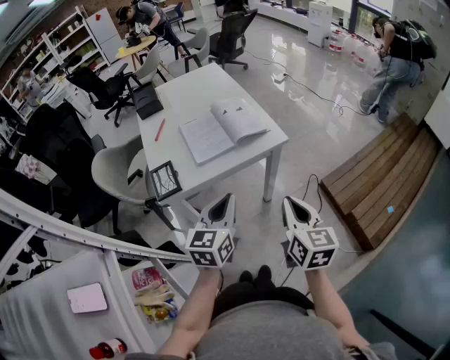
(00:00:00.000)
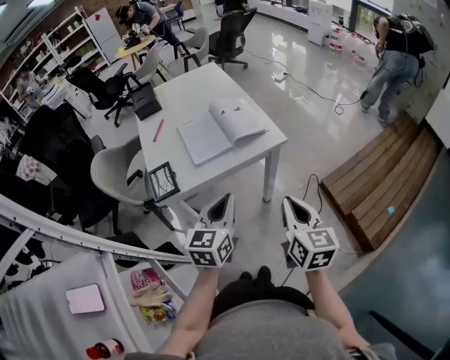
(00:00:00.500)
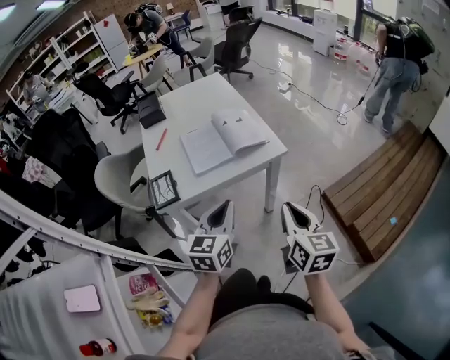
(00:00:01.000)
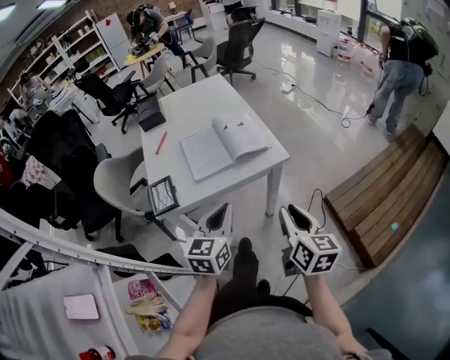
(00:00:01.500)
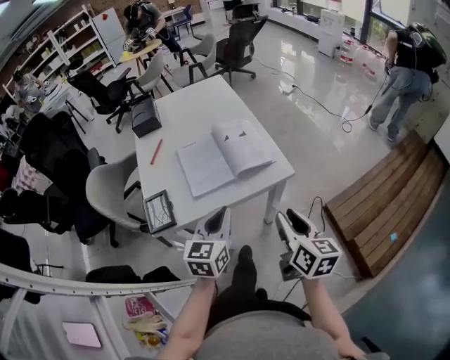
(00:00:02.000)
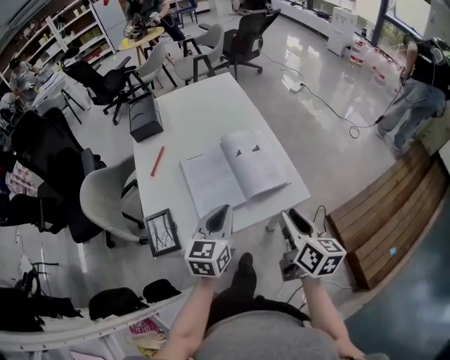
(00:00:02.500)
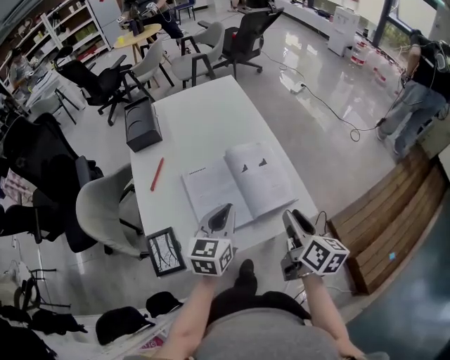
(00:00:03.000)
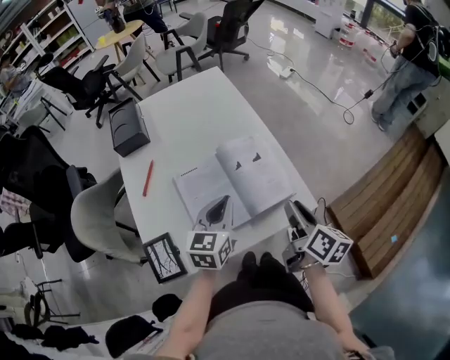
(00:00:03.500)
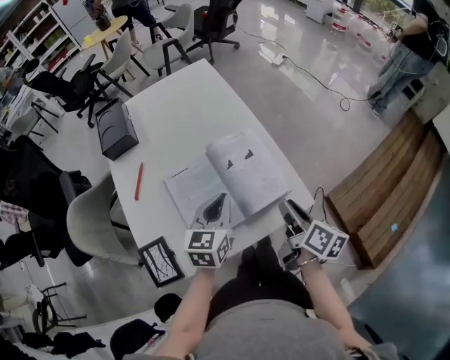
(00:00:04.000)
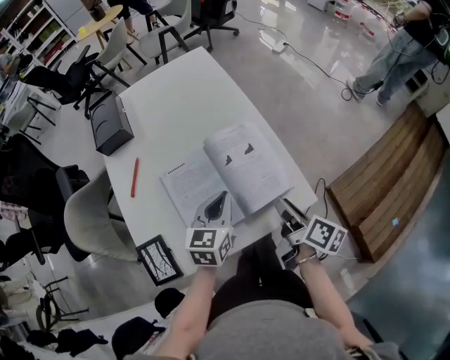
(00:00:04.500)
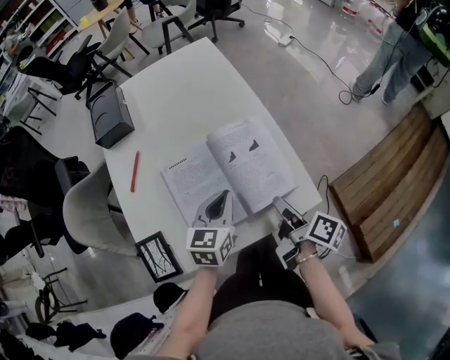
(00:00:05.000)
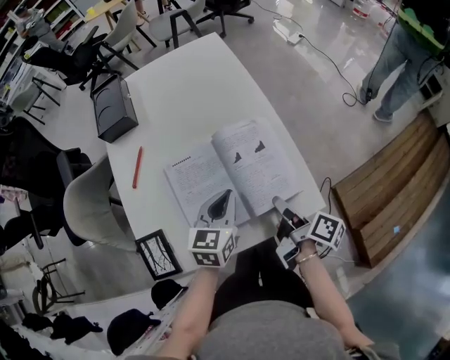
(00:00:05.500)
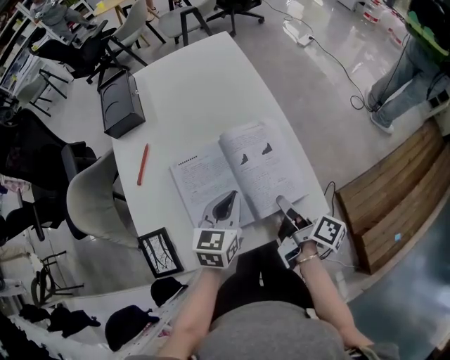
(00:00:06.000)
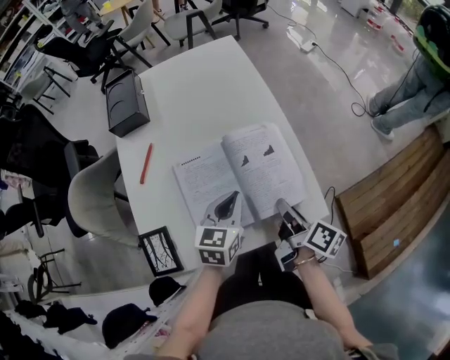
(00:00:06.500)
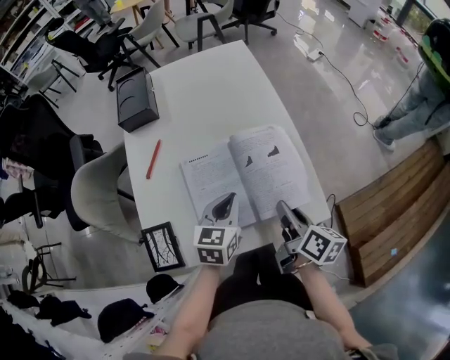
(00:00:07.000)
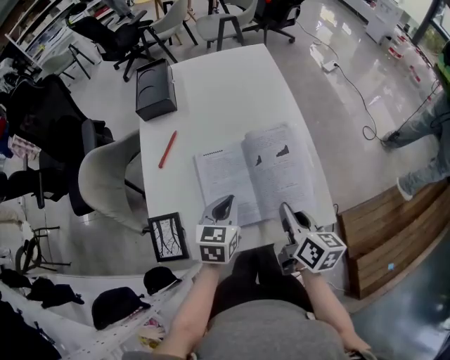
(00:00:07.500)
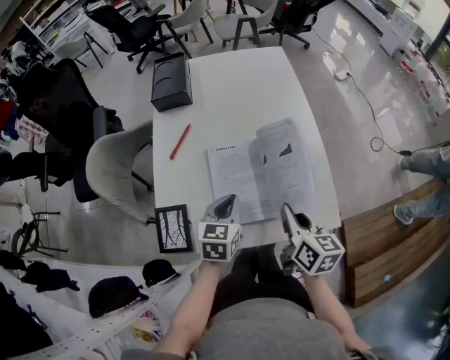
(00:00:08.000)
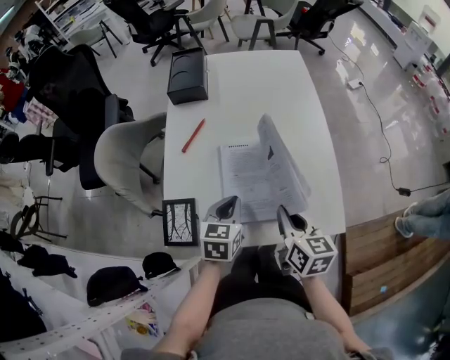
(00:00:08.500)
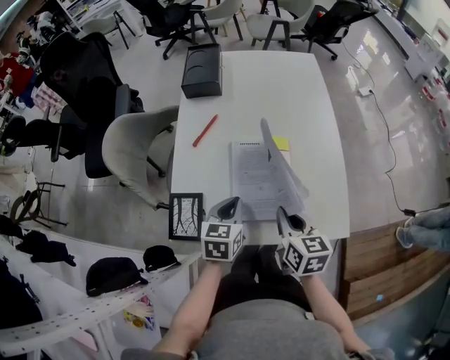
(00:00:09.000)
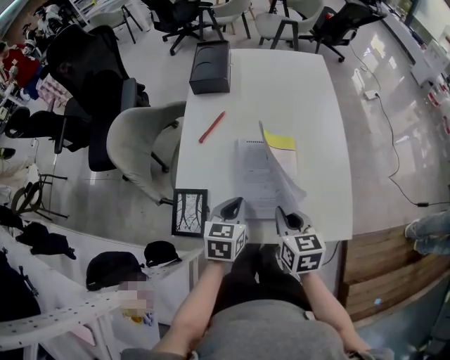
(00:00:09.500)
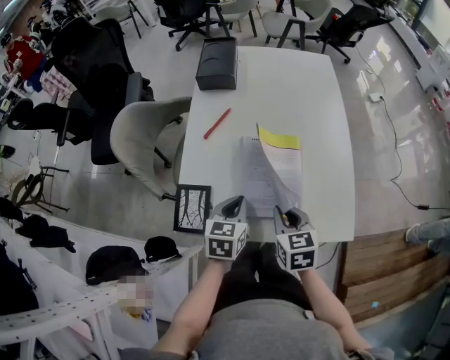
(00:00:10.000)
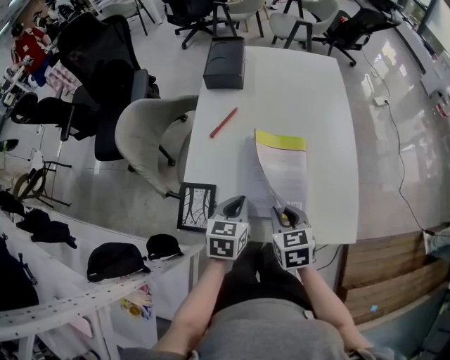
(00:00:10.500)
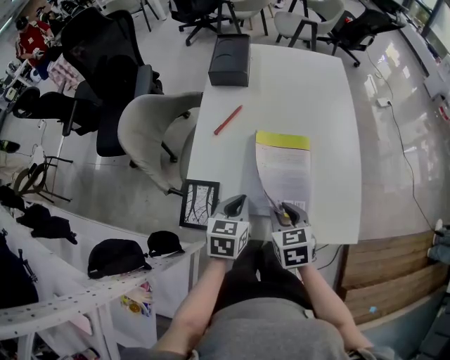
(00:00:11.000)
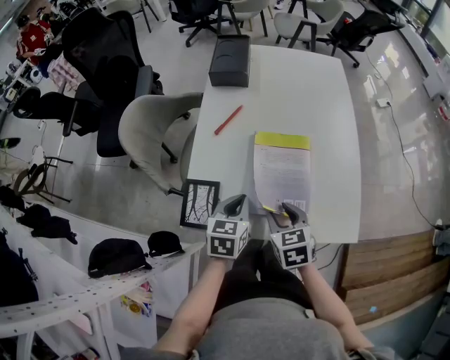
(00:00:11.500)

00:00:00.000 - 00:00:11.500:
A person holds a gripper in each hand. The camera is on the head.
00:00:00.000 - 00:00:02.000: Both grippers travel together forward, about 10 cm. The right gripper opens.
00:00:02.000 - 00:00:04.000: Both grippers move forward, some 20 cm. The right gripper turns by approximately 30 degrees.
00:00:04.000 - 00:00:06.000: The right gripper goes about 5 cm downward, and swivels some 20 degrees.
00:00:06.000 - 00:00:07.500: The left gripper moves to the left, some 5 cm; the right gripper heads upward, covering roughly 5 cm, twists about 40 degrees counterclockwise, seen from behind, and closes its fingers.
00:00:07.500 - 00:00:09.500: Both grippers move to the left, some 10 cm. The right gripper turns by approximately 30 degrees.
00:00:09.500 - 00:00:11.500: The right gripper ends up roughly 5 cm from where it was, and opens.

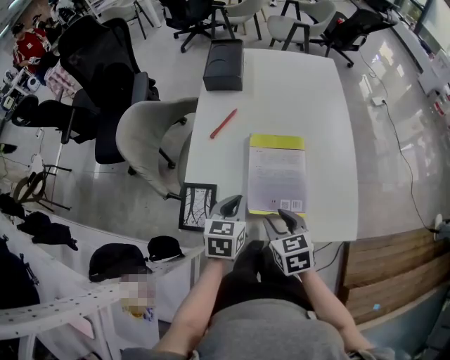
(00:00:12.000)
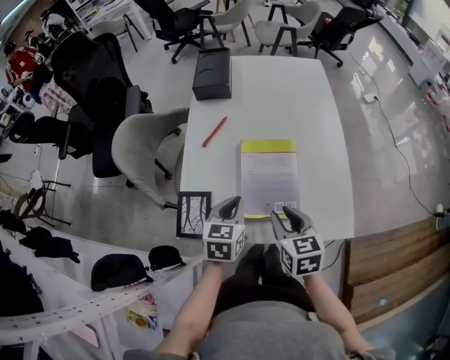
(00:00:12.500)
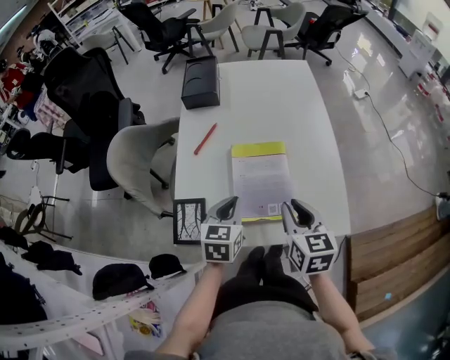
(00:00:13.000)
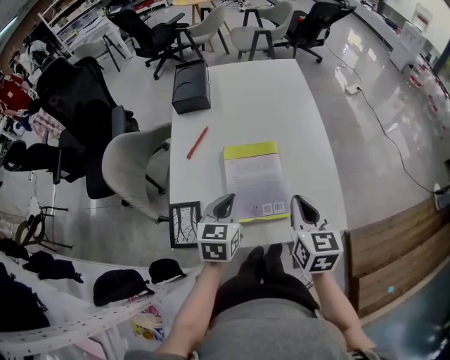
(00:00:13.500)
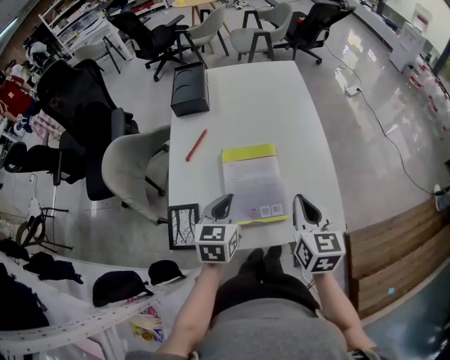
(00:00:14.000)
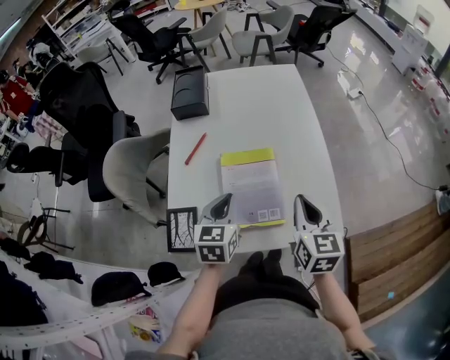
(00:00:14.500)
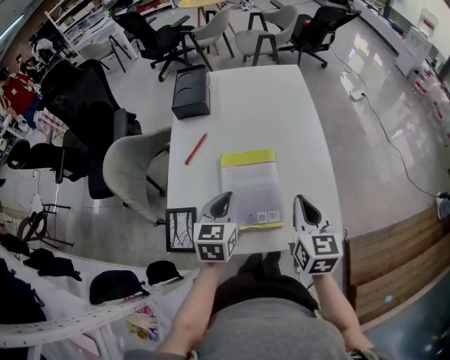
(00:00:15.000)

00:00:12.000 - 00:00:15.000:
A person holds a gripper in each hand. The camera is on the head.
00:00:12.000 - 00:00:13.500: The left gripper changes place by approximately 5 cm. Meanwhile the right gripper moves to the right and upward, roughly 15 cm, changes its angle by some 30 degrees, and closes up.
00:00:13.500 - 00:00:15.000: The grippers move only a little.

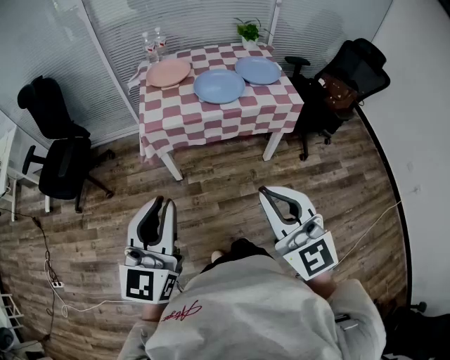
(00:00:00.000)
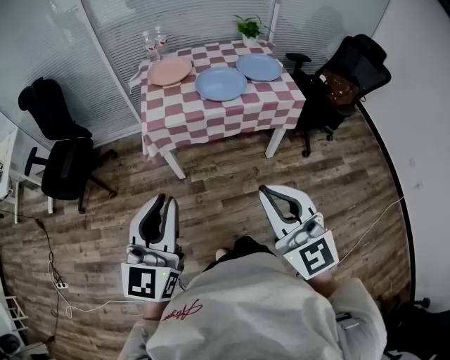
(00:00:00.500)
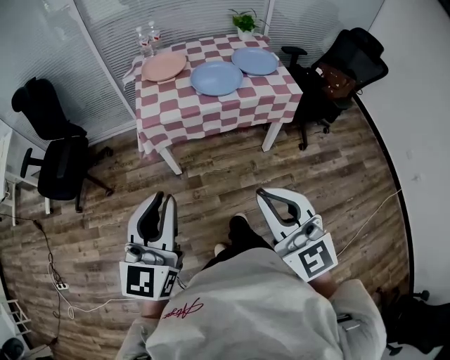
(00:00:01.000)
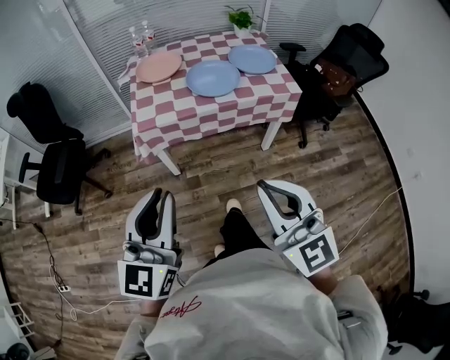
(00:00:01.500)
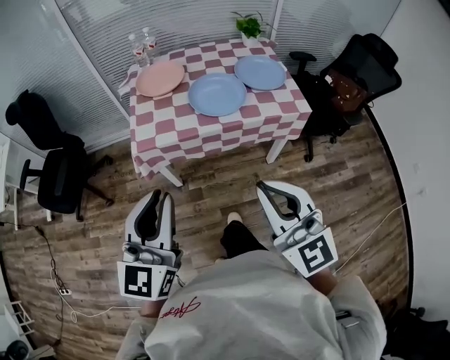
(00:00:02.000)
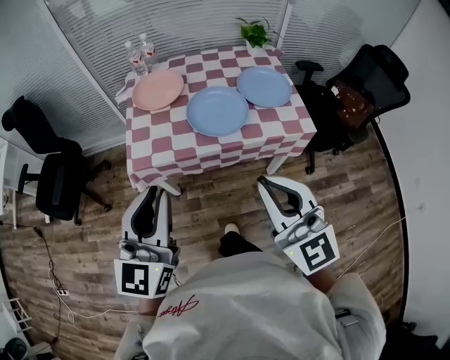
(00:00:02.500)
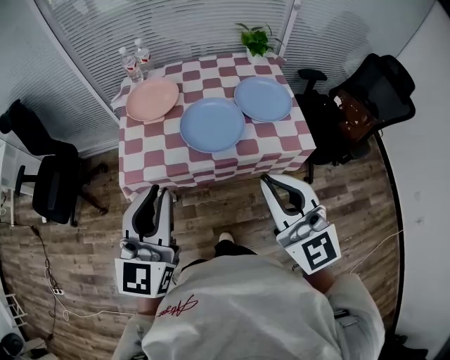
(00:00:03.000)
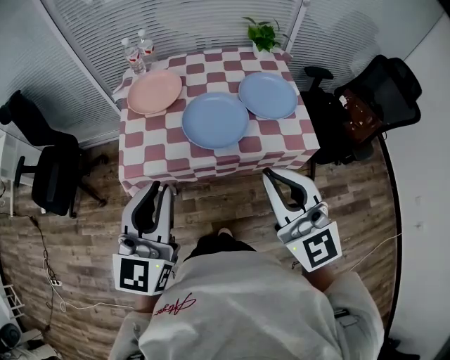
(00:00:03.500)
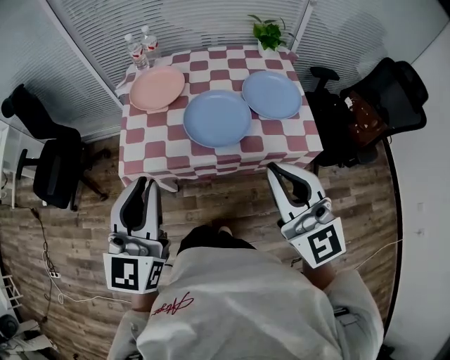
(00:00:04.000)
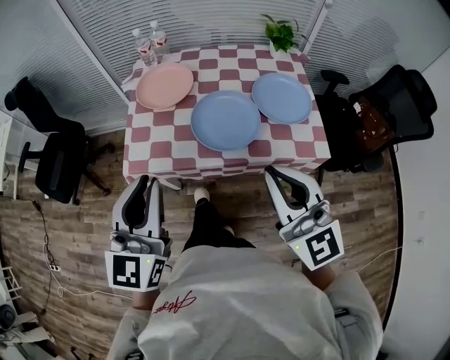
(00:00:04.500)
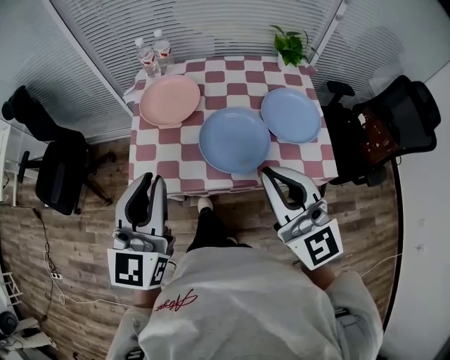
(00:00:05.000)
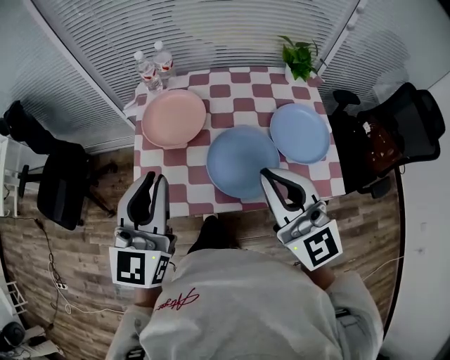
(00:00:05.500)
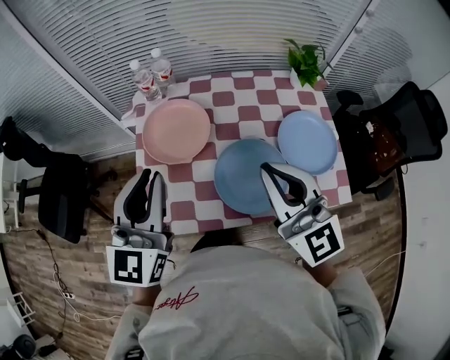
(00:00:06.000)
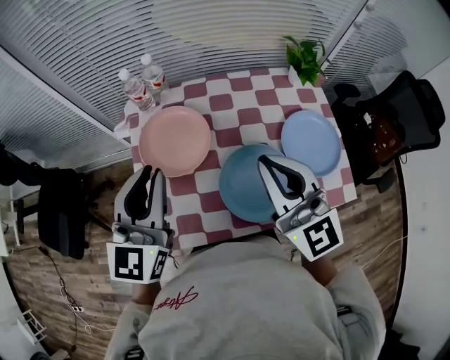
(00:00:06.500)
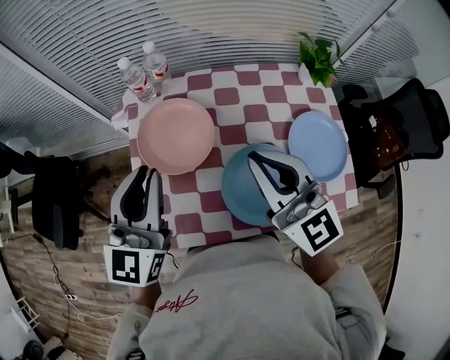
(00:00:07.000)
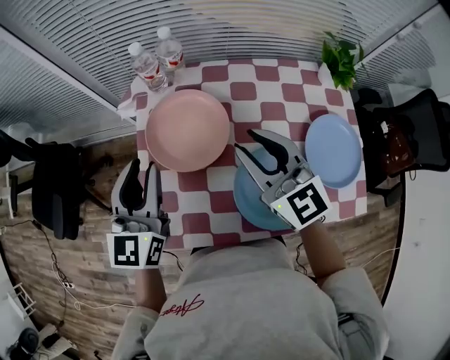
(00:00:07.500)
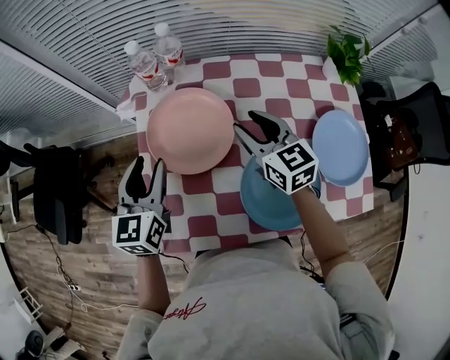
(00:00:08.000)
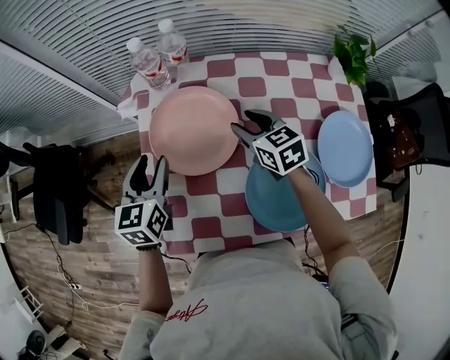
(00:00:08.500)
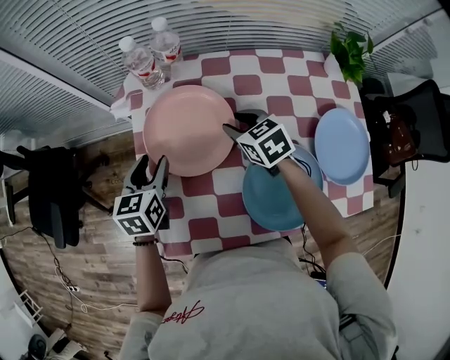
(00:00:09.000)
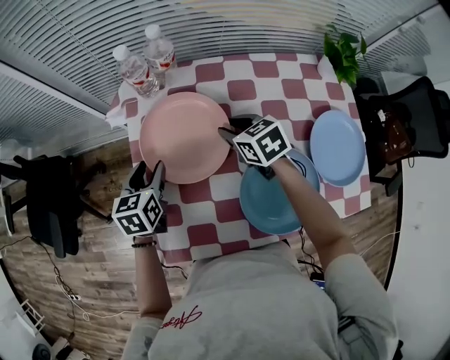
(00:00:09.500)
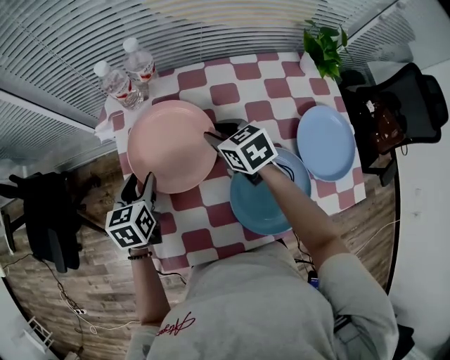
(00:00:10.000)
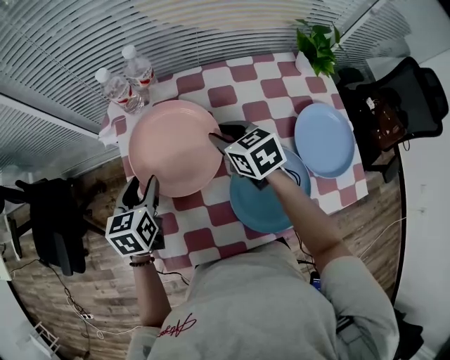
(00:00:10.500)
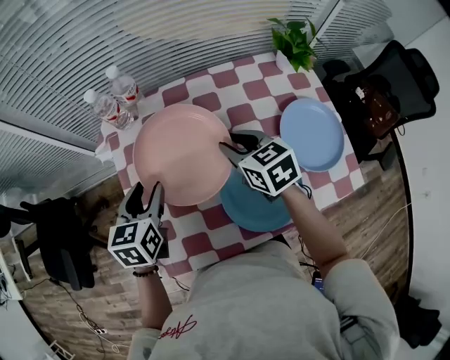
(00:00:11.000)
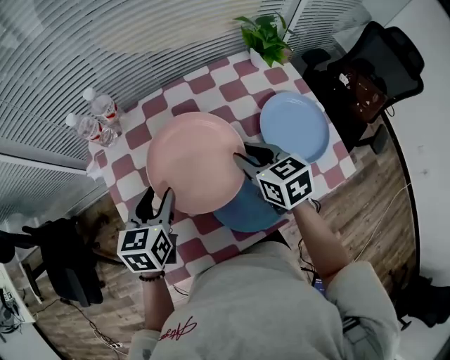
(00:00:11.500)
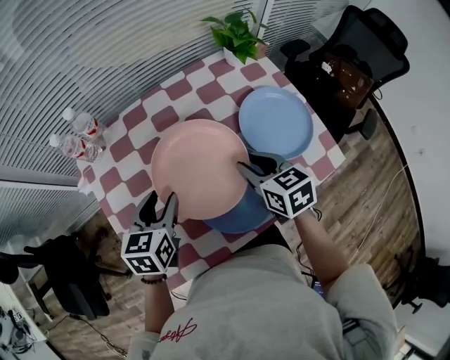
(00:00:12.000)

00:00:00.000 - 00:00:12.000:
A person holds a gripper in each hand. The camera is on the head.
00:00:00.000 - 00:00:02.000: Both grippers move forward, about 15 cm.
00:00:02.000 - 00:00:04.000: The two grippers go some 20 cm forward and to the right.
00:00:04.000 - 00:00:06.000: Both grippers travel together forward, roughly 25 cm.
00:00:06.000 - 00:00:08.000: The right gripper moves forward and downward, about 30 cm, changes its angle by roughly 30 degrees, and opens its fingers, while the left gripper heads downward, forward and to the left, covering approximately 25 cm, swivels approximately 20 degrees, and opens its fingers.
00:00:08.000 - 00:00:10.000: Both grippers travel together downward, approximately 10 cm. The right gripper turns by roughly 20 degrees. Meanwhile the left gripper swivels roughly 20 degrees.
00:00:10.000 - 00:00:12.000: The left gripper moves about 20 cm, and turns by some 30 degrees, while the right gripper ends up roughly 25 cm from where it was, and turns by roughly 30 degrees.
